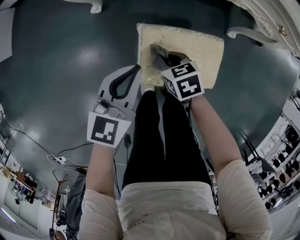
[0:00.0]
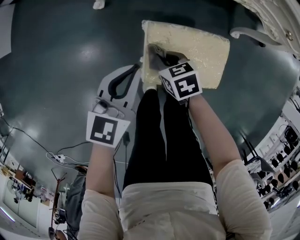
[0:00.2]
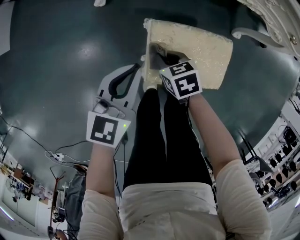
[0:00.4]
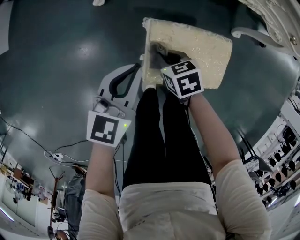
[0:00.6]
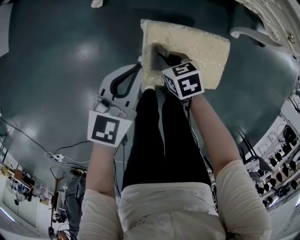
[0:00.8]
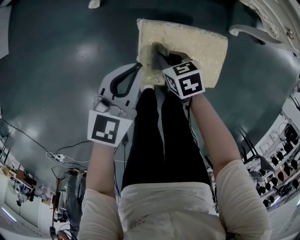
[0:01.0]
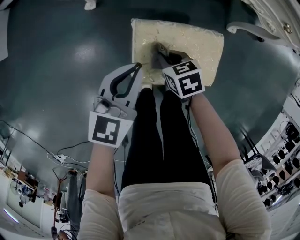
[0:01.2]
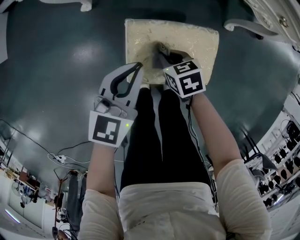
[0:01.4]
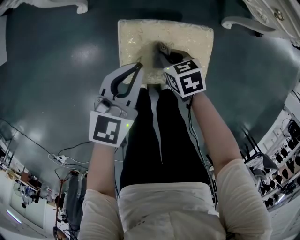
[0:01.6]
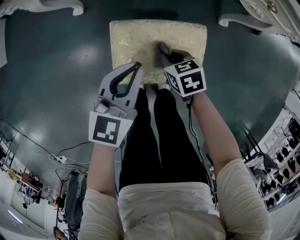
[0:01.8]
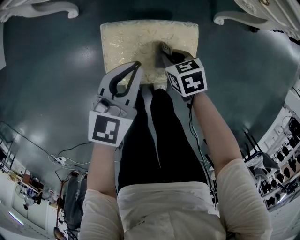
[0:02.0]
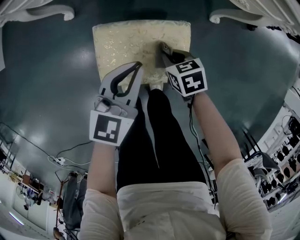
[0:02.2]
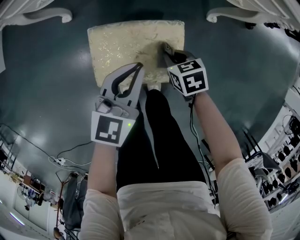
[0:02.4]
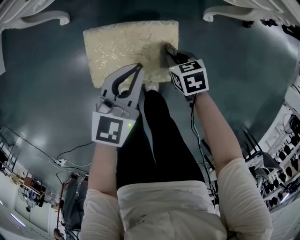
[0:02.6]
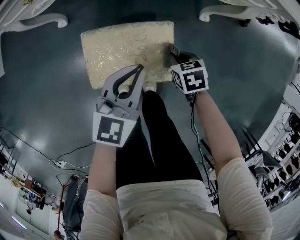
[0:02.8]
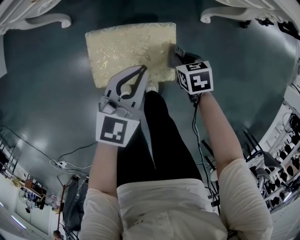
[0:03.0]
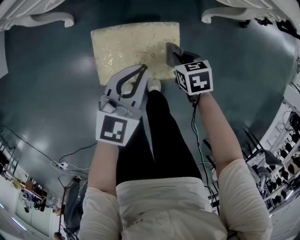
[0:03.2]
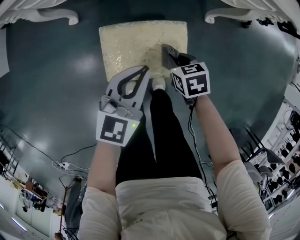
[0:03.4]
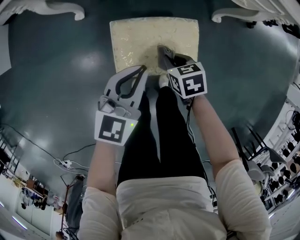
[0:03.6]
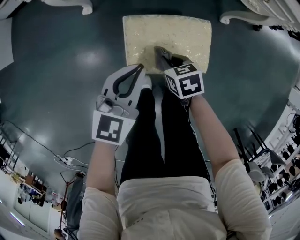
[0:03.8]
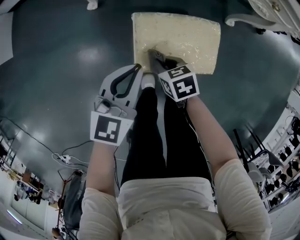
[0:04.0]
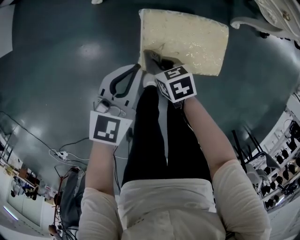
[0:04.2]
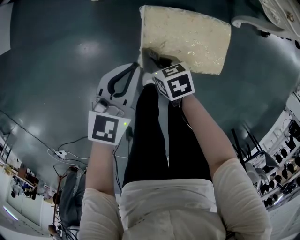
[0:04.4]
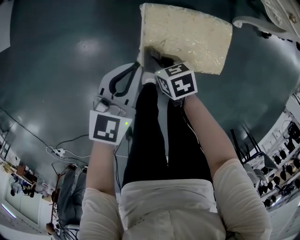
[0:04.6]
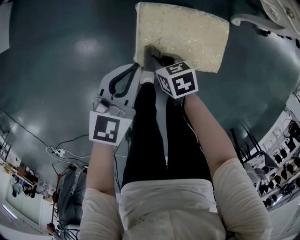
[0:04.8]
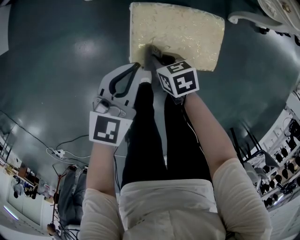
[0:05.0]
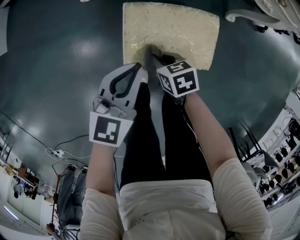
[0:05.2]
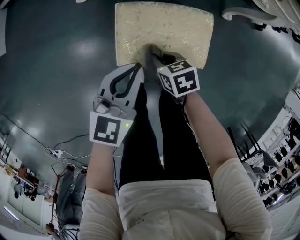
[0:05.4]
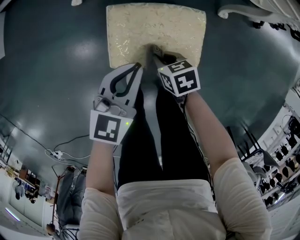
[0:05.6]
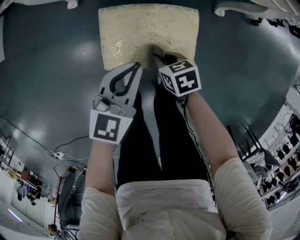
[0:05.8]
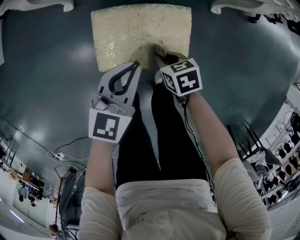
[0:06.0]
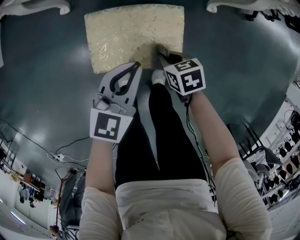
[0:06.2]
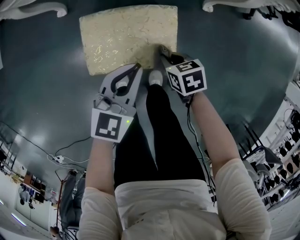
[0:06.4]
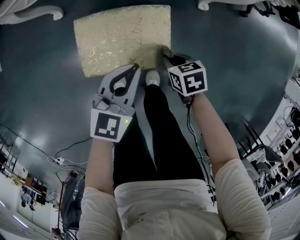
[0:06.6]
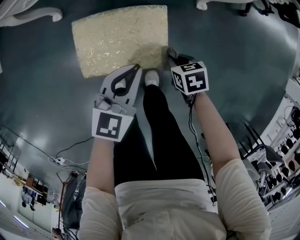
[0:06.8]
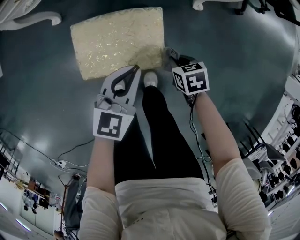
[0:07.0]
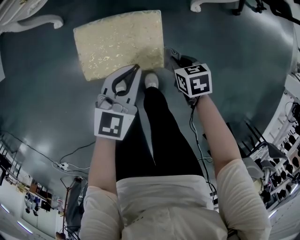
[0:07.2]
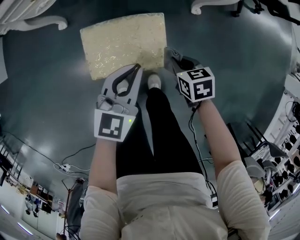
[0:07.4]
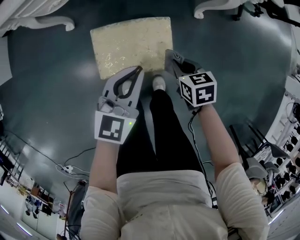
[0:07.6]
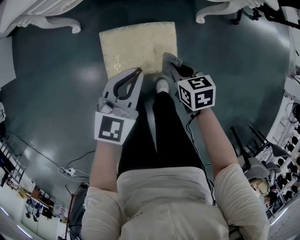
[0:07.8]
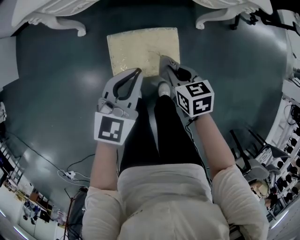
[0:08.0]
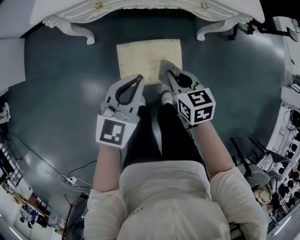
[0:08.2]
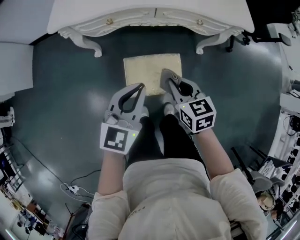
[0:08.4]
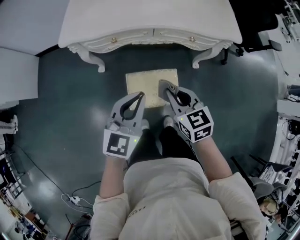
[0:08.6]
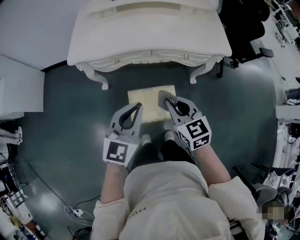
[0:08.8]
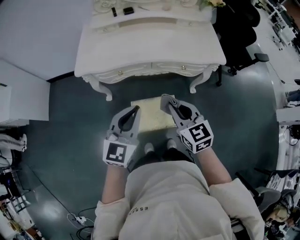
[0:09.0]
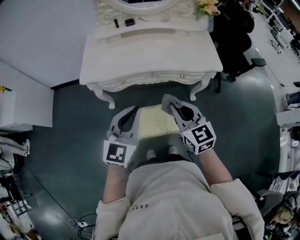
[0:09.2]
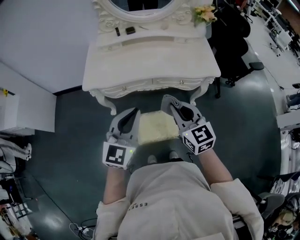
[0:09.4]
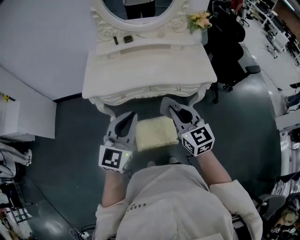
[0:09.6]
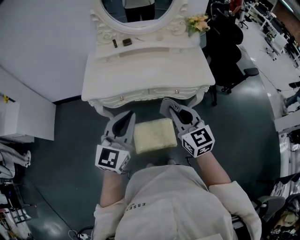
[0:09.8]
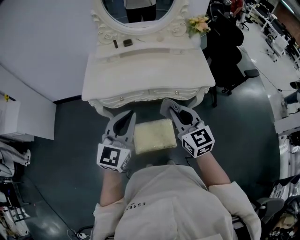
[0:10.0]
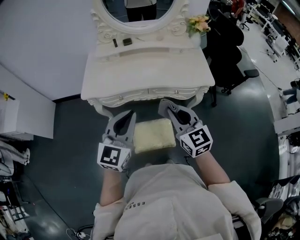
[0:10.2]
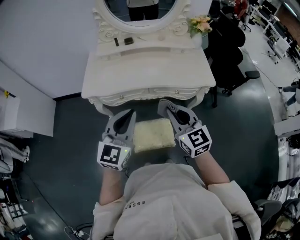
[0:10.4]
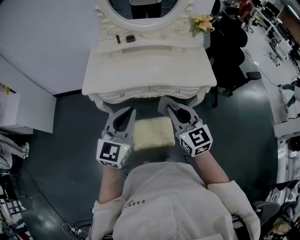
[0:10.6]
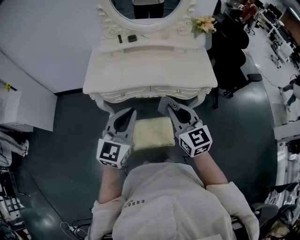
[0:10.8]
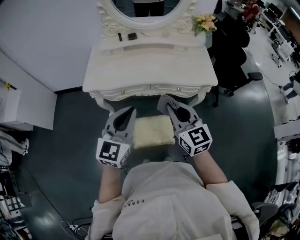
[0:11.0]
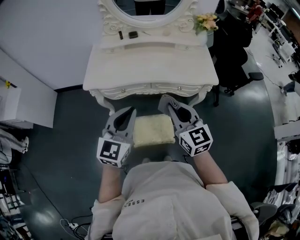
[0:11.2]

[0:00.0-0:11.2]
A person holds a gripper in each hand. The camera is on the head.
0:00.0 to 0:01.6: The grippers both shift to the right by roughly 5 cm.
0:01.6 to 0:03.2: Both grippers move to the right, some 15 cm.
0:03.2 to 0:04.8: Both grippers travel together to the left, roughly 25 cm.
0:04.8 to 0:06.4: Both grippers travel together to the right, about 20 cm.
0:06.4 to 0:08.0: The left gripper moves upward and to the left, roughly 15 cm, while the right gripper goes approximately 20 cm upward.
0:08.0 to 0:09.6: Both grippers move upward, some 40 cm. The left gripper turns by some 20 degrees; the right gripper tips its fingers upward by some 40 degrees.
0:09.6 to 0:11.2: The grippers move only a little.

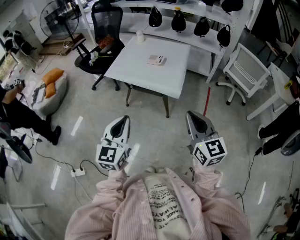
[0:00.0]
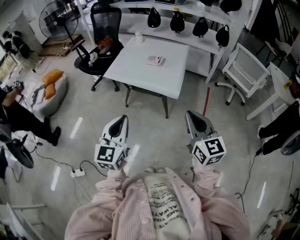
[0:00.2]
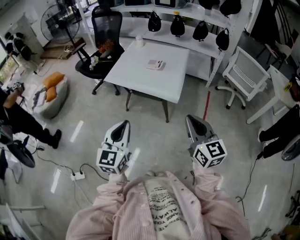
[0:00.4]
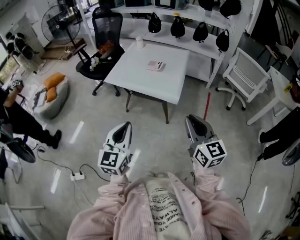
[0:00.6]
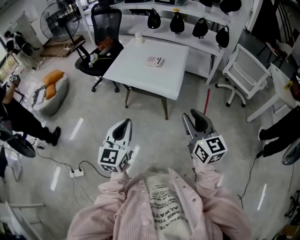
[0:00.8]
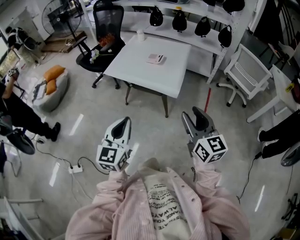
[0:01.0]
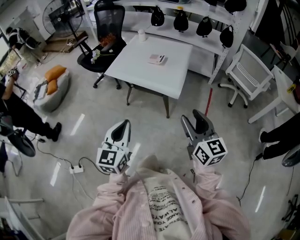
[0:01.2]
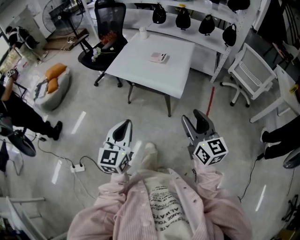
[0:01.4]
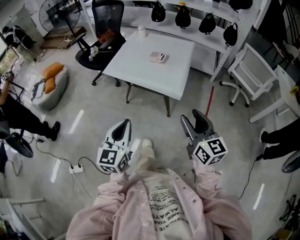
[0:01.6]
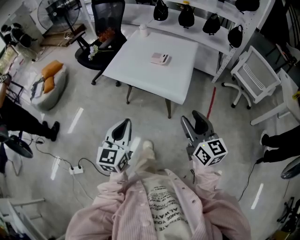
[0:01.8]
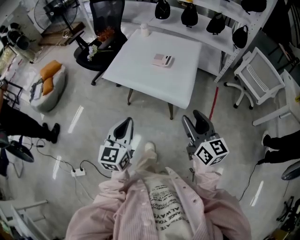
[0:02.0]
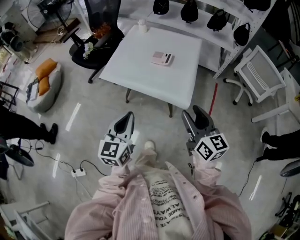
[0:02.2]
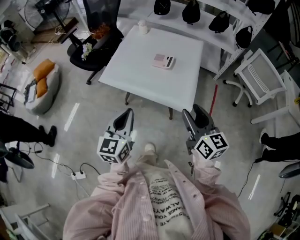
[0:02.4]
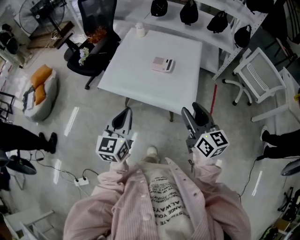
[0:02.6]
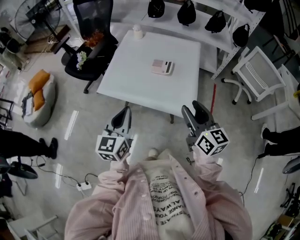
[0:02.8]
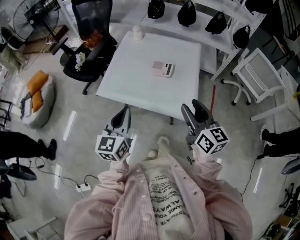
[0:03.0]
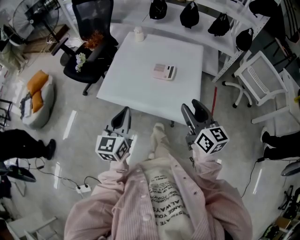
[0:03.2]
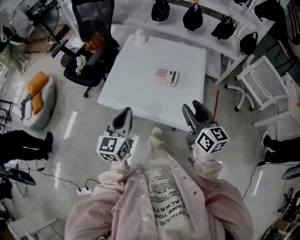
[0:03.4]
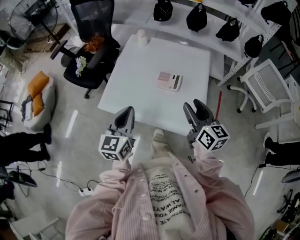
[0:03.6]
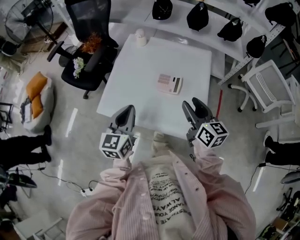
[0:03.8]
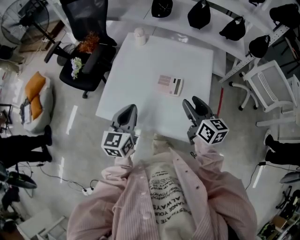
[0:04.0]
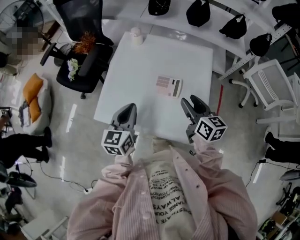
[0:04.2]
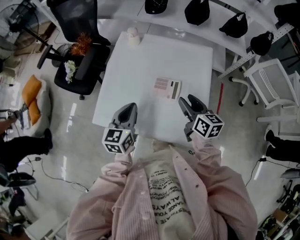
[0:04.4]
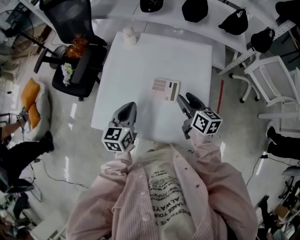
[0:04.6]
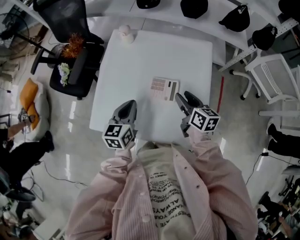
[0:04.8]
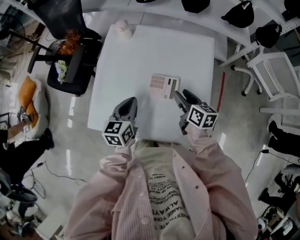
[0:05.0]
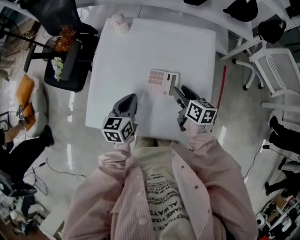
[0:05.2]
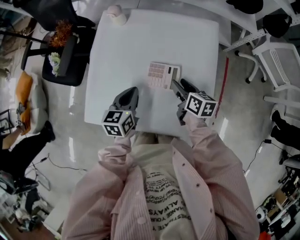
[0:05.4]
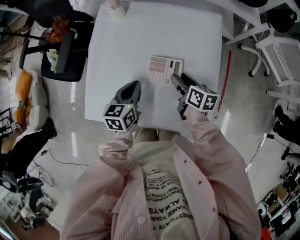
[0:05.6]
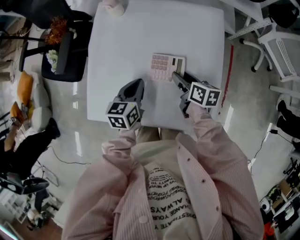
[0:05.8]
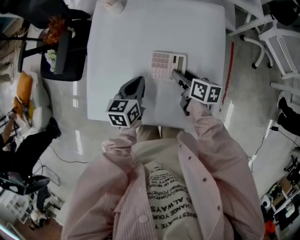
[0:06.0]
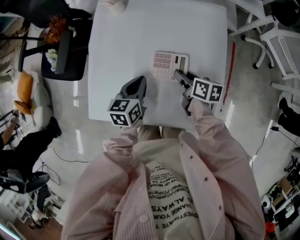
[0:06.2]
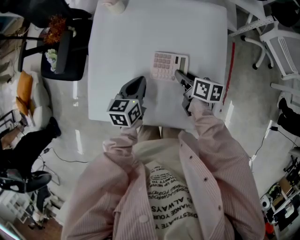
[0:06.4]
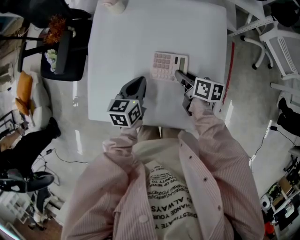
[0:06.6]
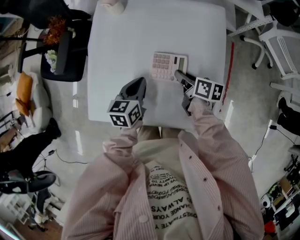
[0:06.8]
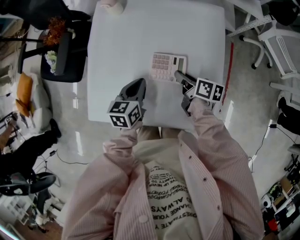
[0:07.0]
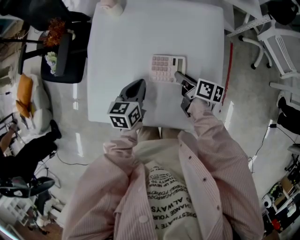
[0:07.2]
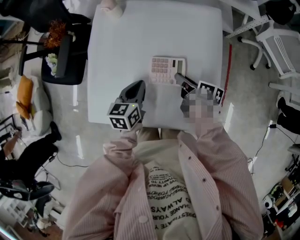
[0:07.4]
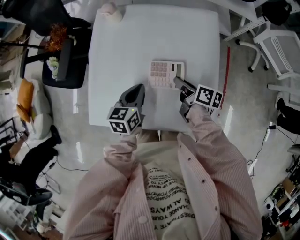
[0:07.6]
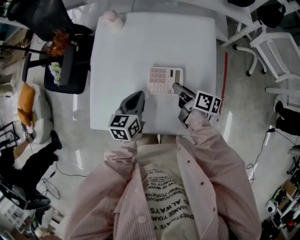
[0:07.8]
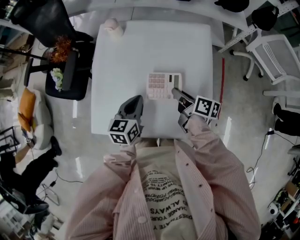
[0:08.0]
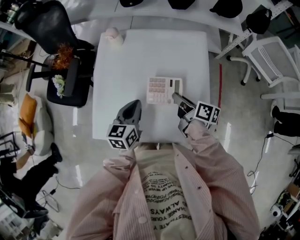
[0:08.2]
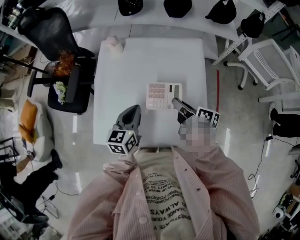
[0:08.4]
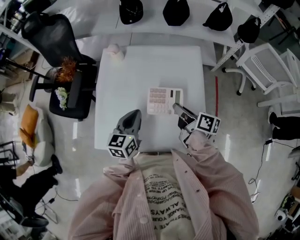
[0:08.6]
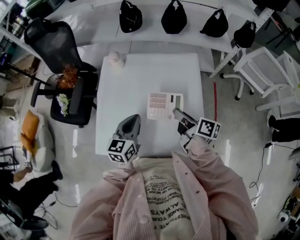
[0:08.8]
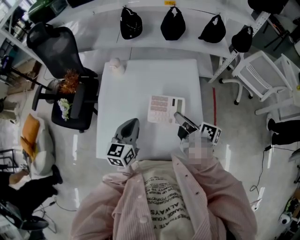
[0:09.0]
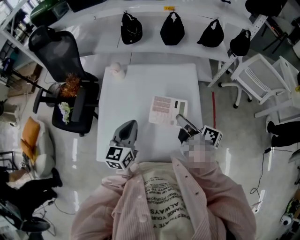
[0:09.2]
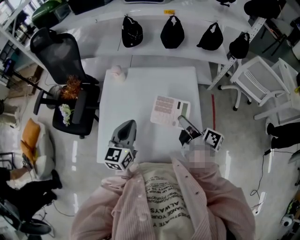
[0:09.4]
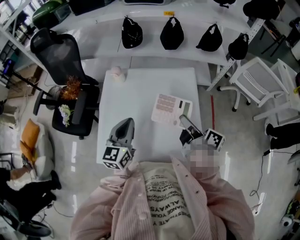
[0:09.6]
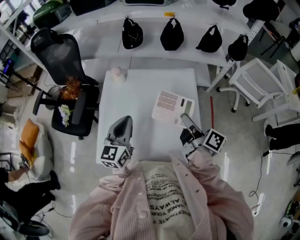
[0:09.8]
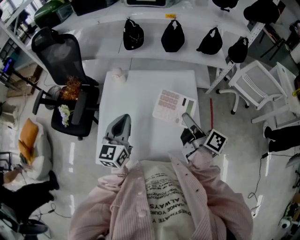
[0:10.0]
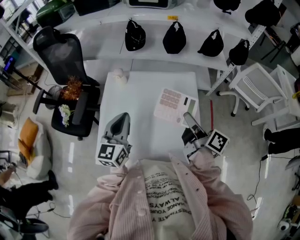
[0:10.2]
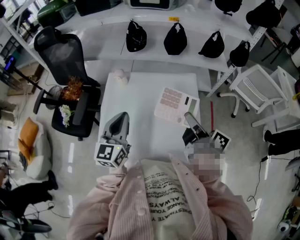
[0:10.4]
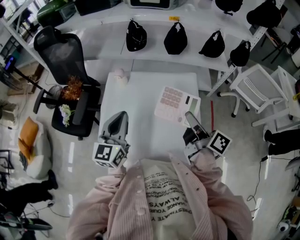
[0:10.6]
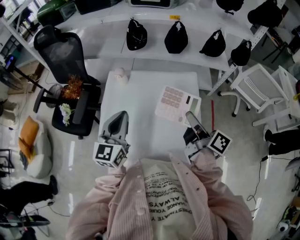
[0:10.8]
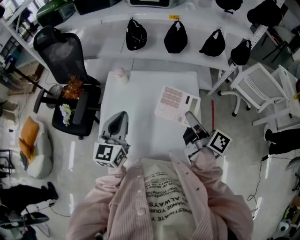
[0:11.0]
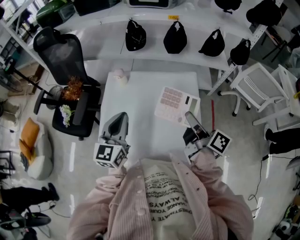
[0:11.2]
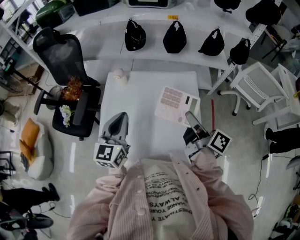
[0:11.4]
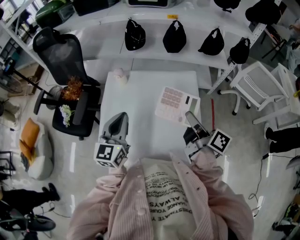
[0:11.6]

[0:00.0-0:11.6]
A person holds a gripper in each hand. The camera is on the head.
0:00.0 to 0:01.4: The right gripper opens.
0:01.4 to 0:02.8: Both grippers move forward, approximately 25 cm.
0:02.8 to 0:04.4: The right gripper shifts approximately 30 cm forward and downward, and swivels approximately 20 degrees. The left gripper shifts about 25 cm forward.
0:04.4 to 0:05.8: The left gripper shifts roughly 15 cm downward and forward. Meanwhile the right gripper is displaced downward by some 15 cm, and turns by some 20 degrees.
0:05.8 to 0:07.2: The right gripper closes.
0:07.2 to 0:08.8: Both grippers move upward, roughly 15 cm.
0:08.8 to 0:10.2: The two grippers go approximately 10 cm upward.
0:10.2 to 0:11.6: There are only small adjustments of the grippers.

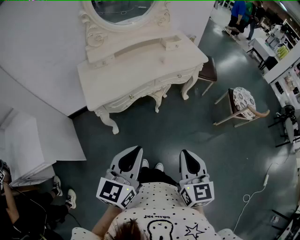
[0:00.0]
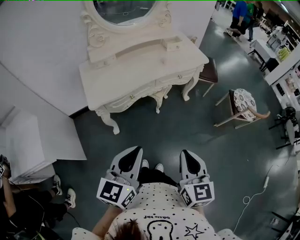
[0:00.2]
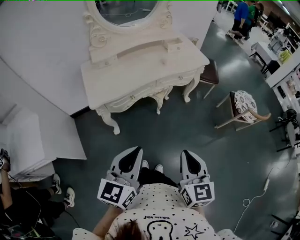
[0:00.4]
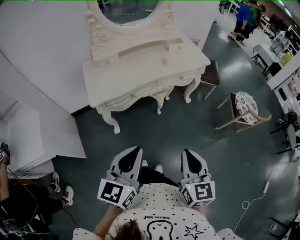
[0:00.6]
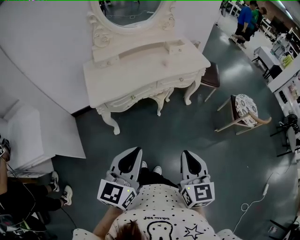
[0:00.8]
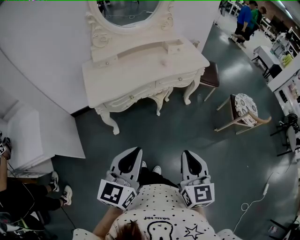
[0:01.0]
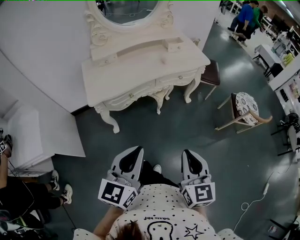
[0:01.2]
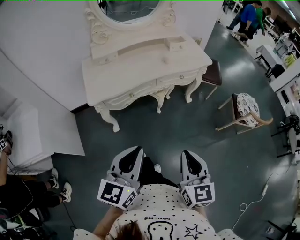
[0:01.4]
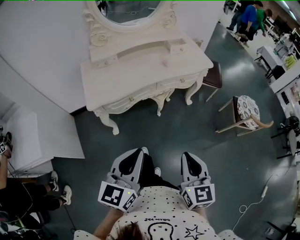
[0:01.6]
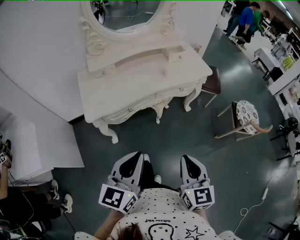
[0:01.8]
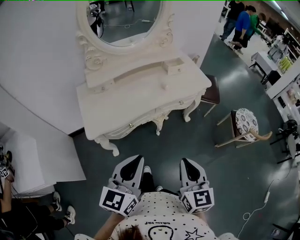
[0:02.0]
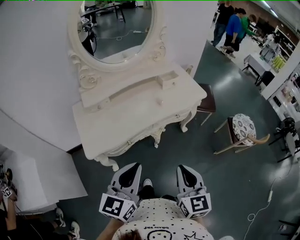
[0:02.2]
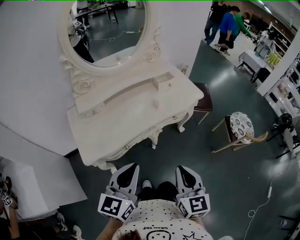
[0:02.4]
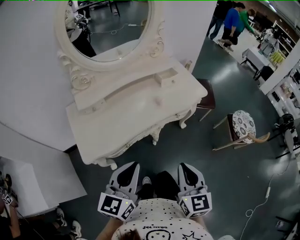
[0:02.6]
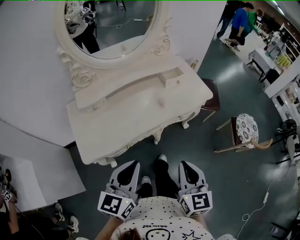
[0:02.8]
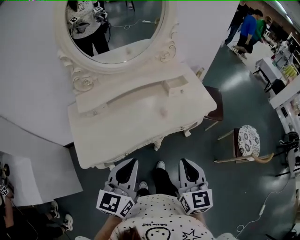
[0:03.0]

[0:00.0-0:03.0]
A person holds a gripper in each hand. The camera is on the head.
0:00.0 to 0:01.6: The grippers move only a little.
0:01.6 to 0:03.0: Both grippers move forward, roughly 30 cm.
